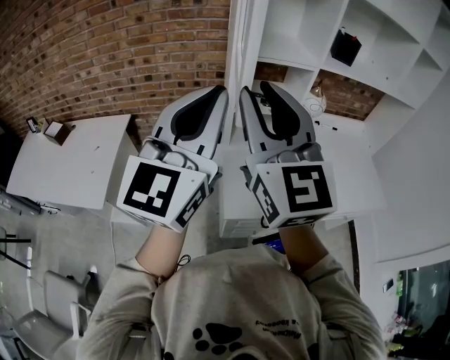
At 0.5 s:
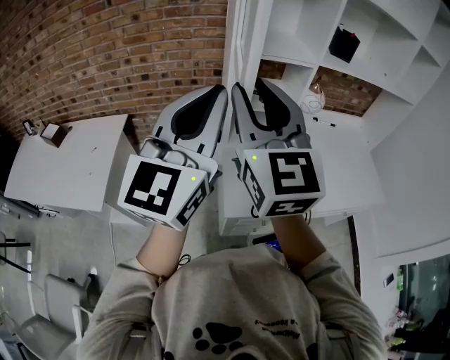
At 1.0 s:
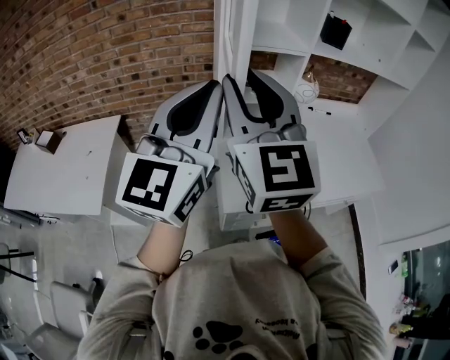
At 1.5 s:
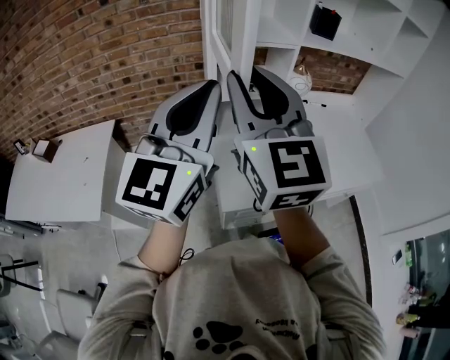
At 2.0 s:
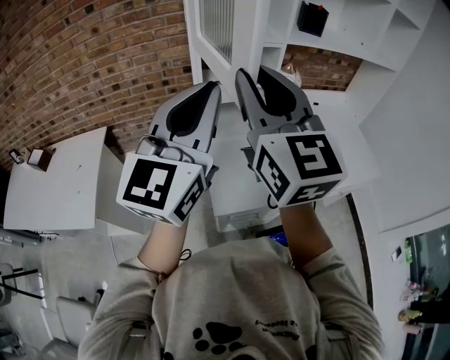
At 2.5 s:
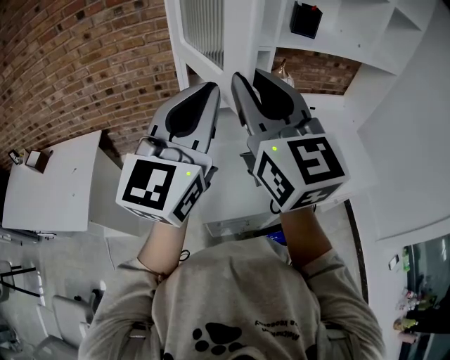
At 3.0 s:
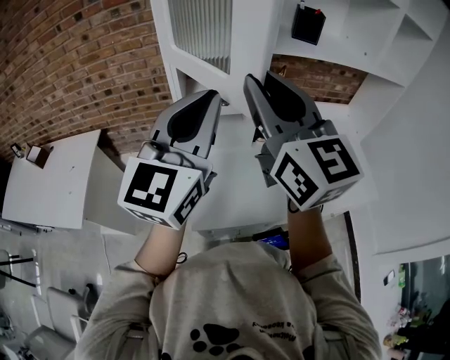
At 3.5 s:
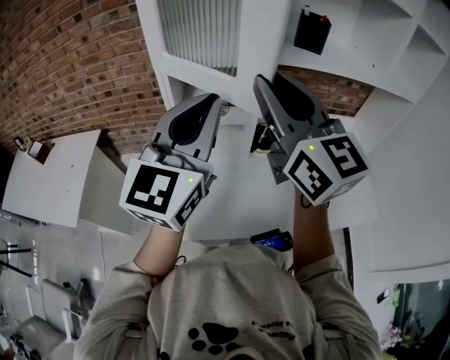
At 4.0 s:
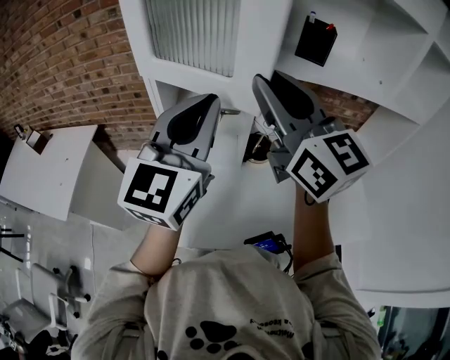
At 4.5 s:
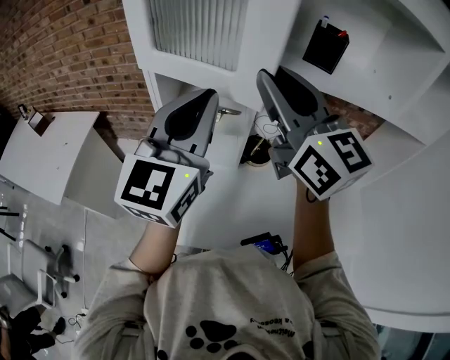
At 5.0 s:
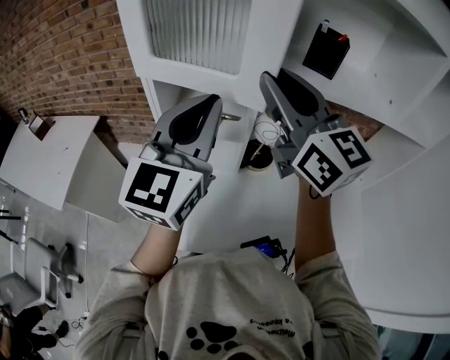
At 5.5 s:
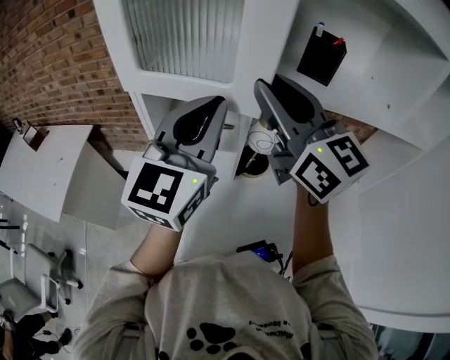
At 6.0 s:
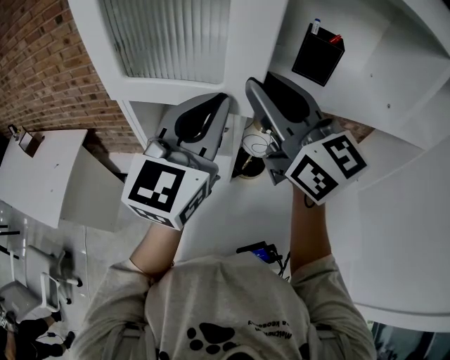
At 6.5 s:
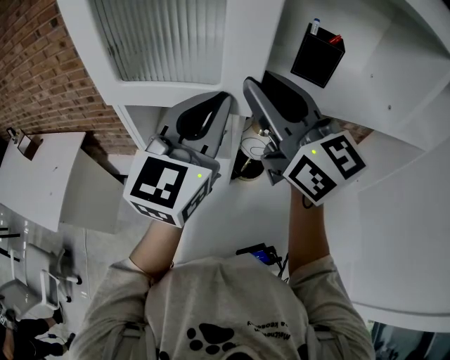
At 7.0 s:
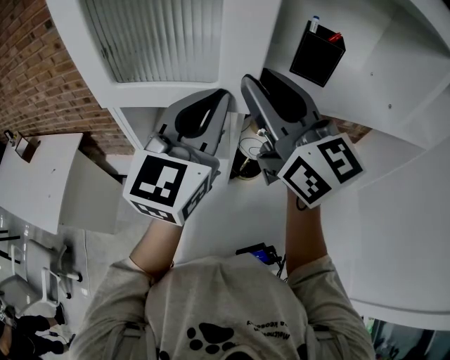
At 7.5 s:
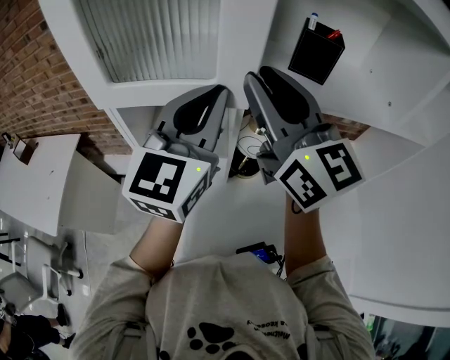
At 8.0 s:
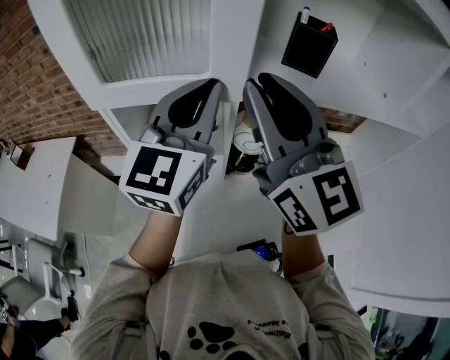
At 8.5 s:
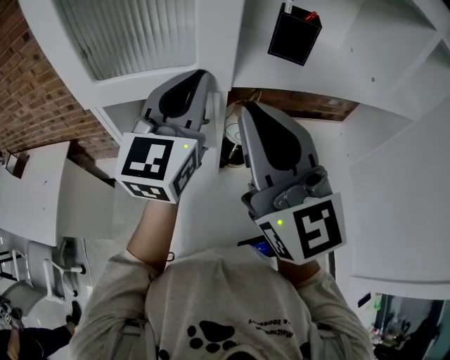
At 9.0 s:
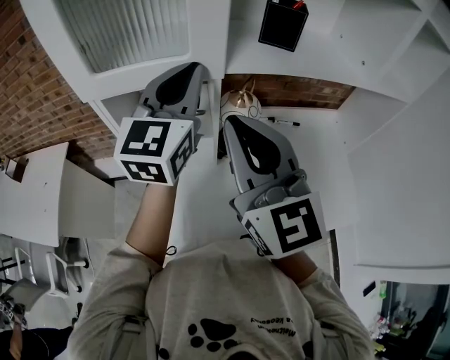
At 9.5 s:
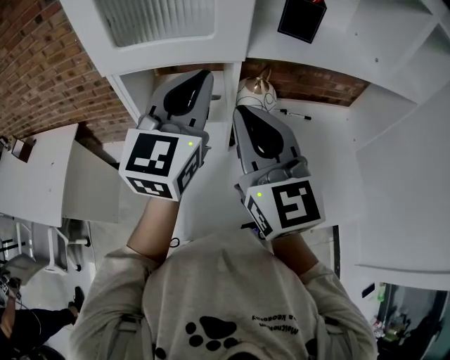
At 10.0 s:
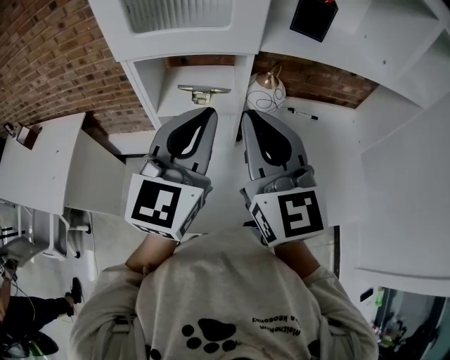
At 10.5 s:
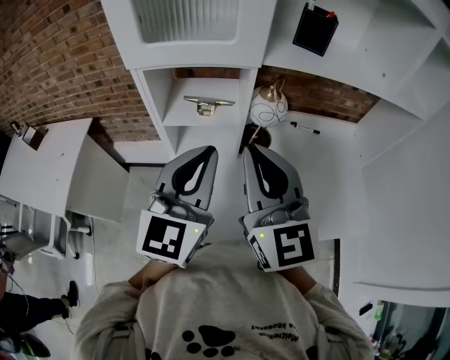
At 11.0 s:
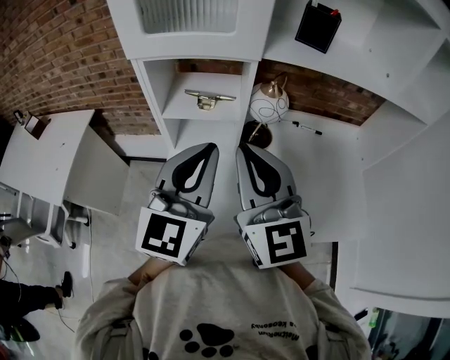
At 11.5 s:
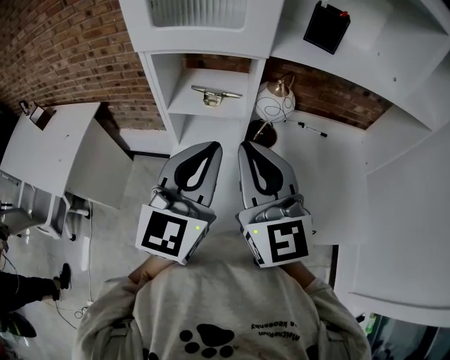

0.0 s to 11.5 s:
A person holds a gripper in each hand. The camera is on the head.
0.0 to 2.0 s: Both grippers move to the right, roughly 5 cm.
2.0 to 4.0 s: The grippers both shift to the right and forward by approximately 25 cm. The right gripper swivels roughly 20 degrees.
4.0 to 6.0 s: The left gripper is displaced forward and to the right by approximately 10 cm. Meanwhile the right gripper goes approximately 10 cm forward.
6.0 to 7.5 s: The grippers move only a little.
7.5 to 9.5 s: The left gripper heads backward, covering roughly 5 cm; the right gripper goes roughly 15 cm backward and downward, and closes up.
9.5 to 11.5 s: The left gripper shifts approximately 15 cm backward and downward, while the right gripper shifts approximately 5 cm backward.

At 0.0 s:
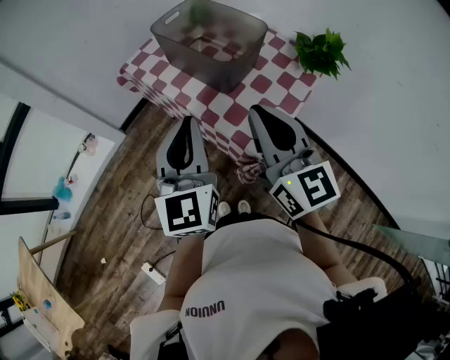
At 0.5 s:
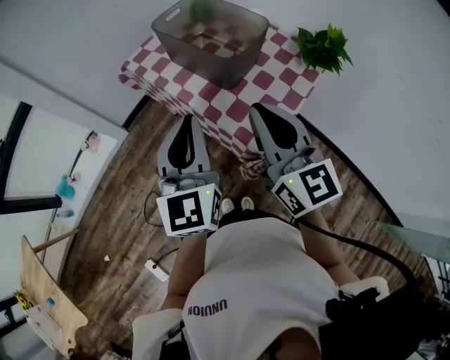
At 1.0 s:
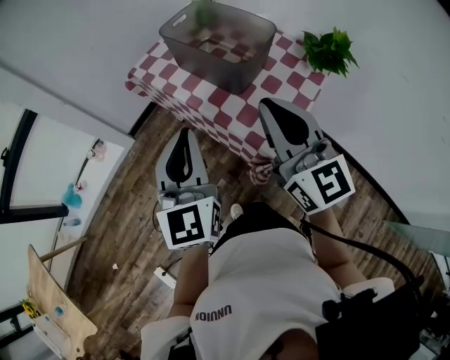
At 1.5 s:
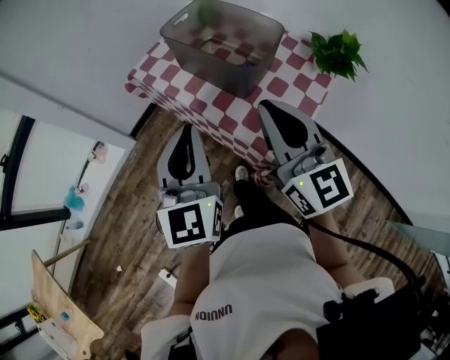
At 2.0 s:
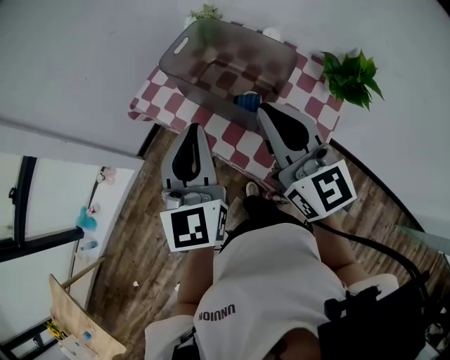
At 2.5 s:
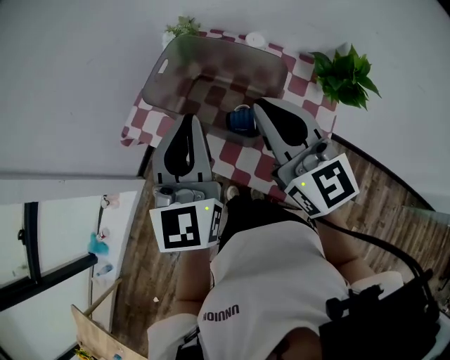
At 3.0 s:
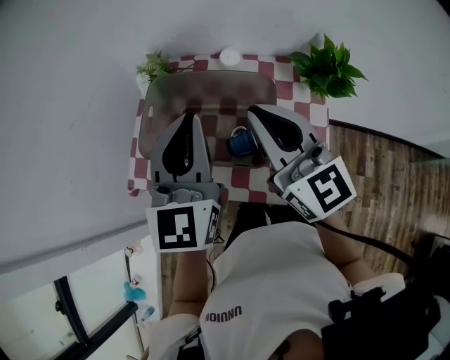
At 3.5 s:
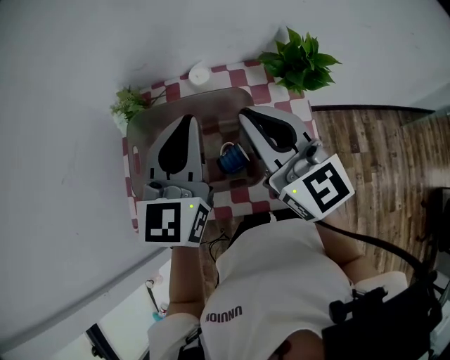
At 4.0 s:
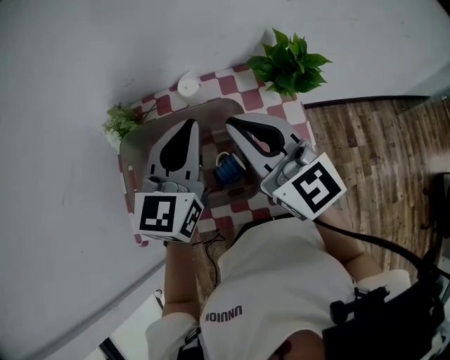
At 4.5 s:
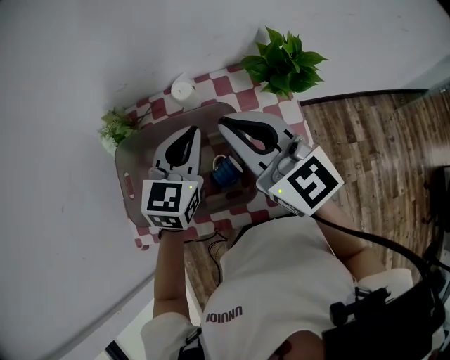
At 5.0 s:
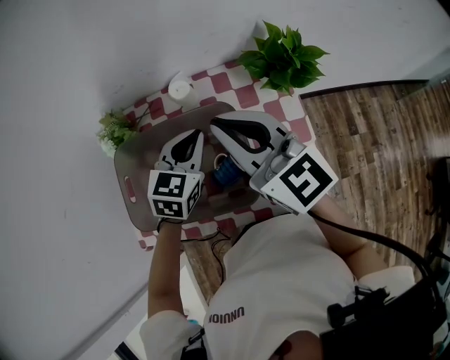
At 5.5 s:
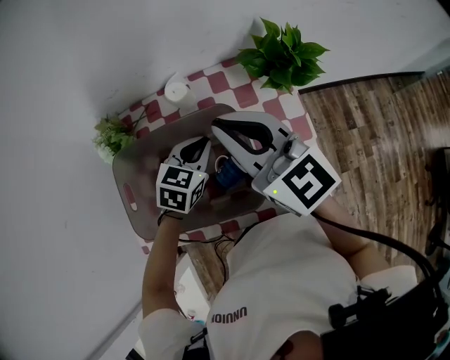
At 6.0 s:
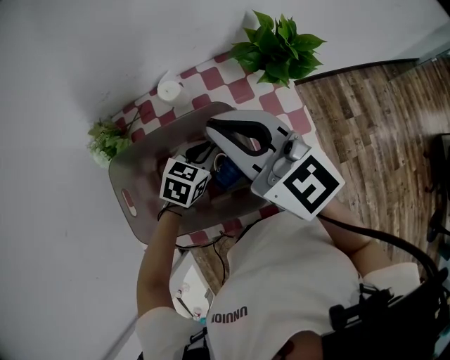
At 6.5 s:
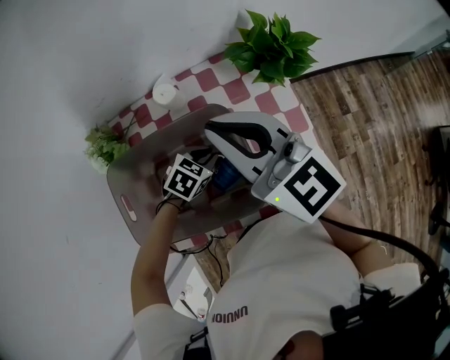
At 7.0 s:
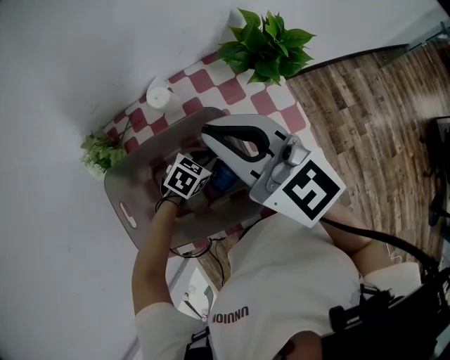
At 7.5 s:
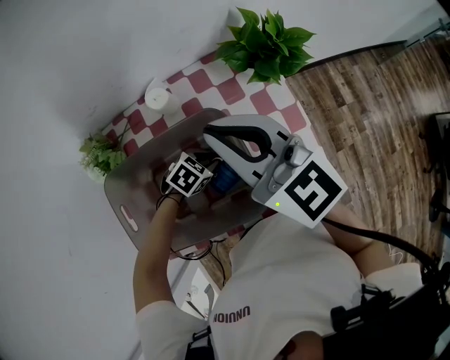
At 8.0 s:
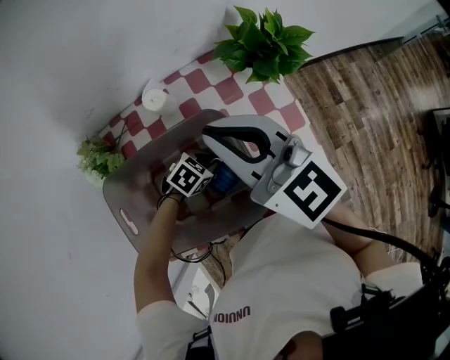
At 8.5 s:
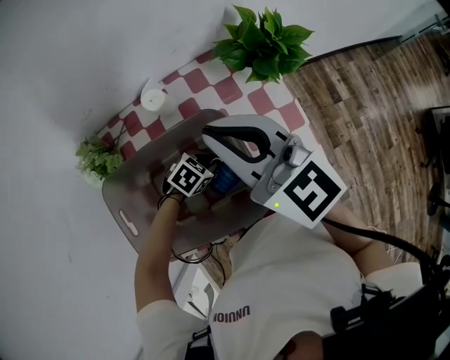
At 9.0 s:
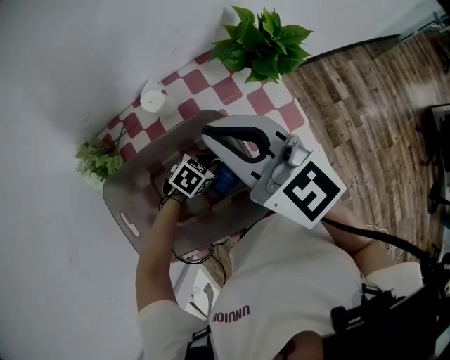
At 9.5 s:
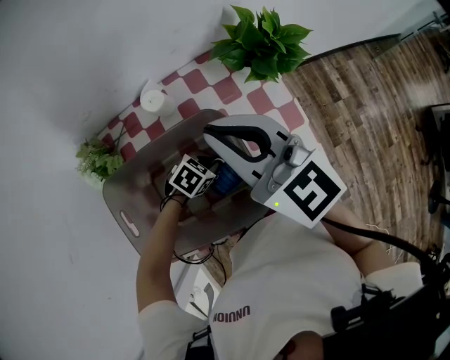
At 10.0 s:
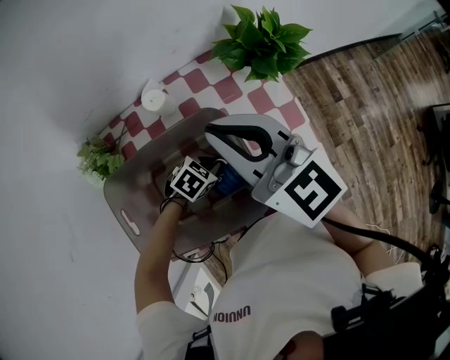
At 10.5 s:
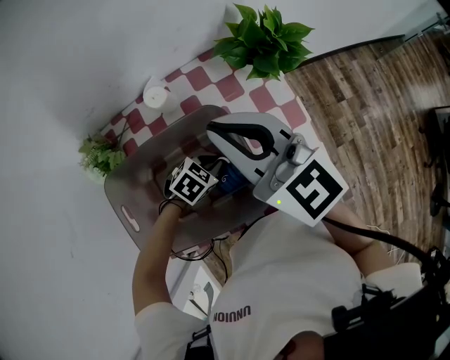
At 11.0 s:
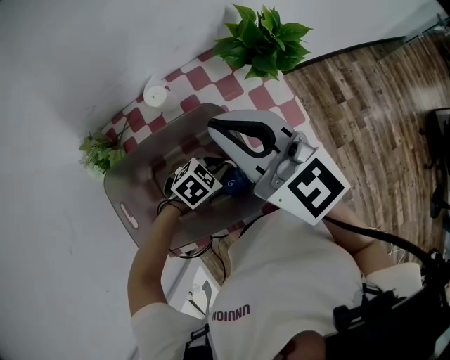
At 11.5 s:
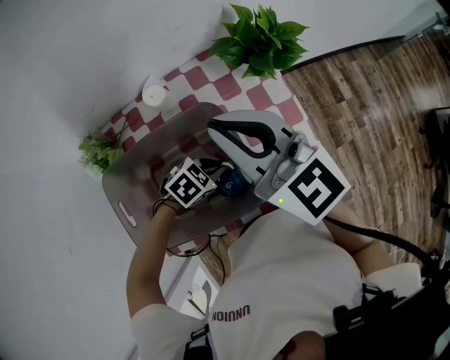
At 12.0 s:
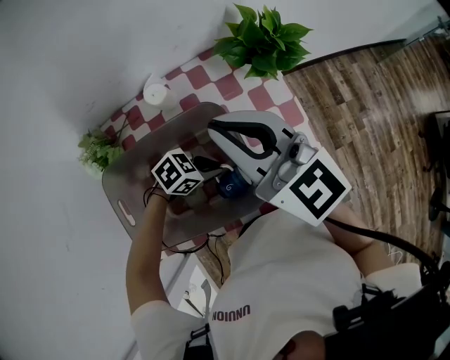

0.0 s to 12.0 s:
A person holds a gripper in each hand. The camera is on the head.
0.0 to 2.0 s: Both grippers move forward, some 15 cm.
2.0 to 4.0 s: The right gripper changes place by about 15 cm, and swivels approximately 30 degrees, while the left gripper shifts by roughly 25 cm, and rotates some 60 degrees.
4.0 to 6.0 s: The left gripper goes roughly 25 cm downward, and tilts its fingers some 40 degrees downward.
6.0 to 8.0 s: The left gripper heads downward, covering approximately 10 cm, and changes its angle by approximately 30 degrees.
8.0 to 10.0 s: Neither gripper changes place.
10.0 to 12.0 s: The left gripper changes place by approximately 5 cm.

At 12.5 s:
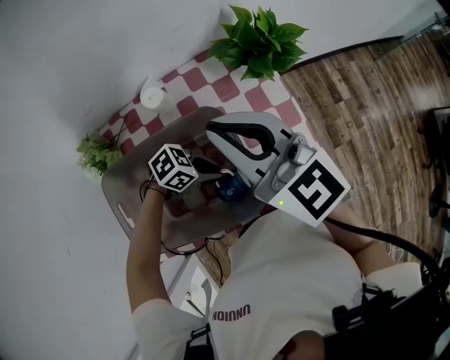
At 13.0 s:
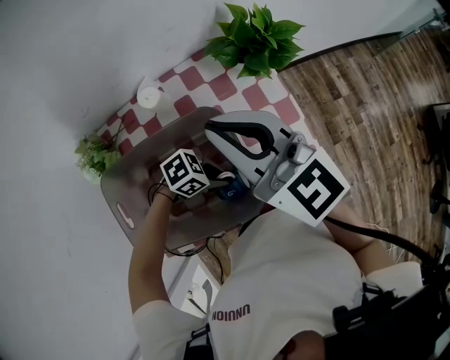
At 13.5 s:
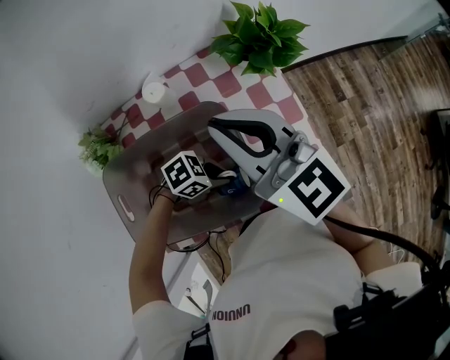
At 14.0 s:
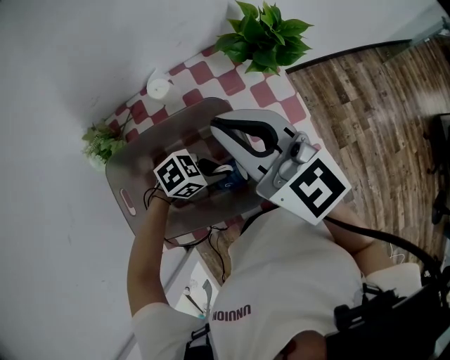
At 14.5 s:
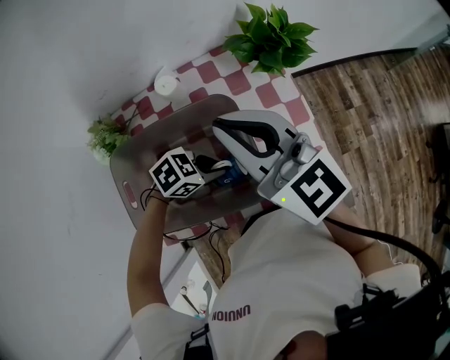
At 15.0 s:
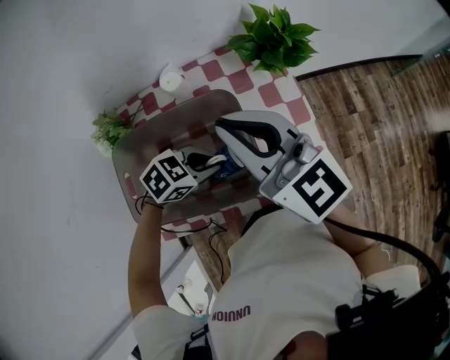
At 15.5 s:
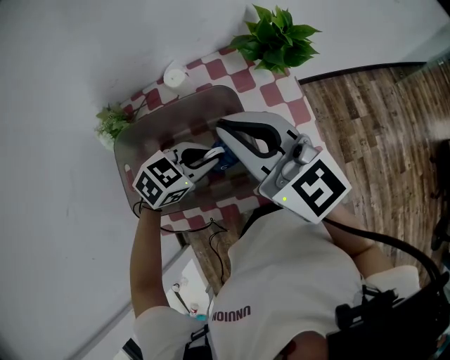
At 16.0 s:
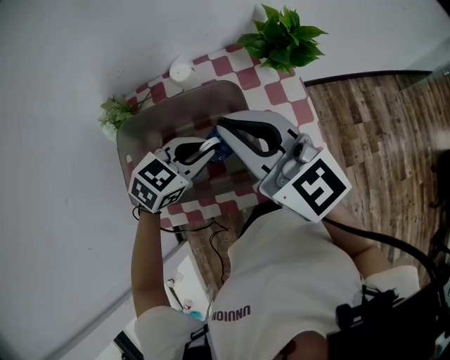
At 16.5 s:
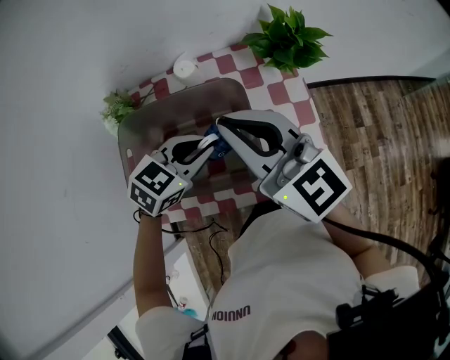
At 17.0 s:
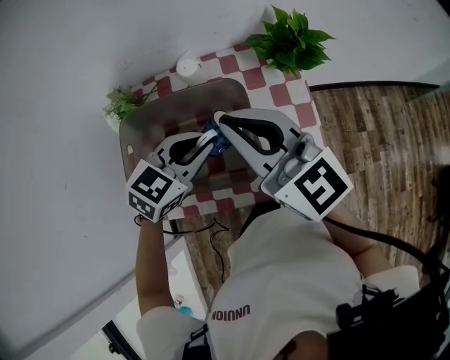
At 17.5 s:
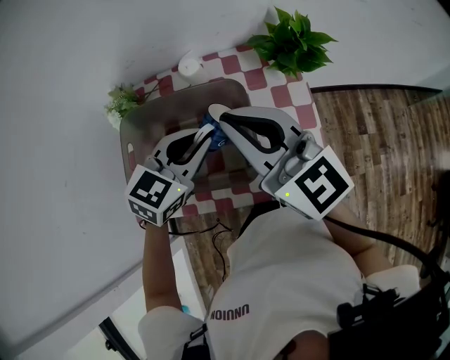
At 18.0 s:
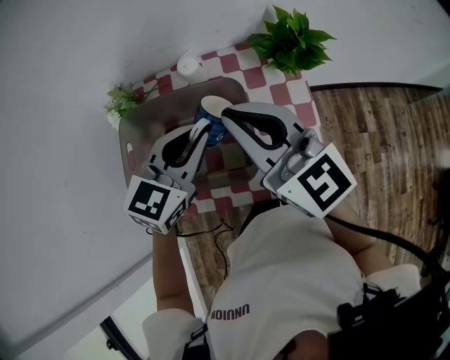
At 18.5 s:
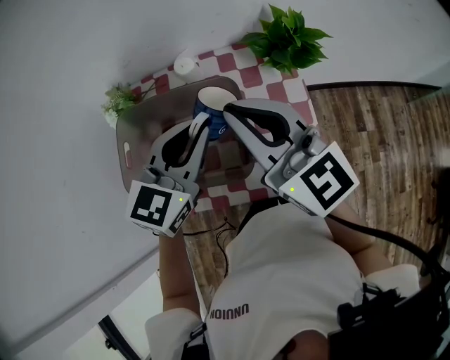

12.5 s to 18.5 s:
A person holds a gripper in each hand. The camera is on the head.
12.5 to 14.5 s: The grippers stay close to where they were, moving slightly.
14.5 to 16.5 s: The right gripper shifts by about 5 cm. The left gripper is displaced upward by about 10 cm, and turns by about 40 degrees.
16.5 to 18.5 s: The left gripper heads upward, covering approximately 10 cm, and changes its angle by approximately 30 degrees.
